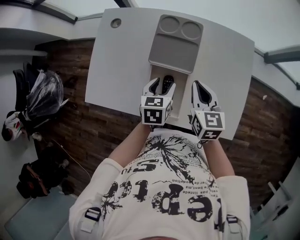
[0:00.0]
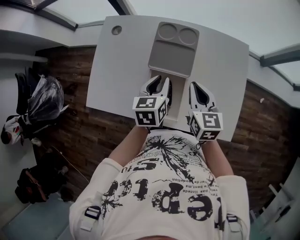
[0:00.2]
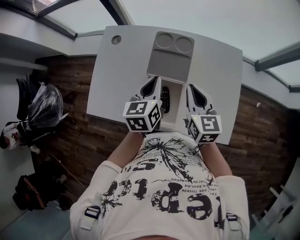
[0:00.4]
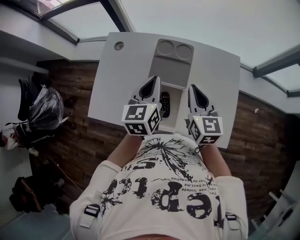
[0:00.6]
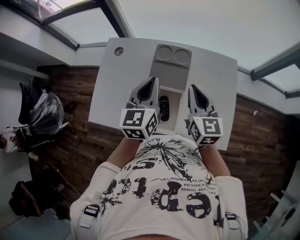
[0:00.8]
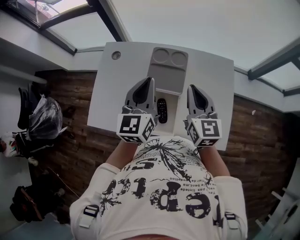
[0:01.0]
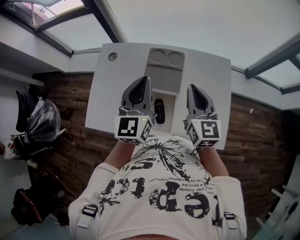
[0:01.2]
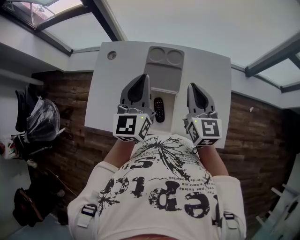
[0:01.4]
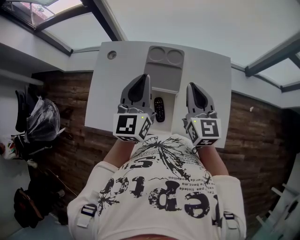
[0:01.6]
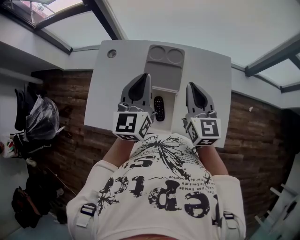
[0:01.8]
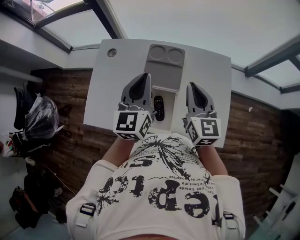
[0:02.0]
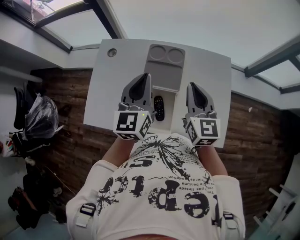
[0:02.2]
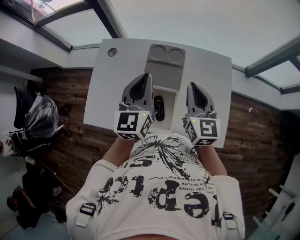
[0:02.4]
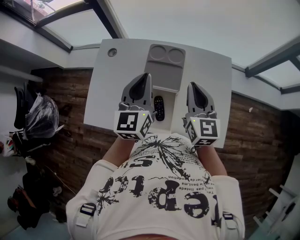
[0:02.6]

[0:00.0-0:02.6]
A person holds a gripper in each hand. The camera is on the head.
0:00.0 to 0:01.2: The left gripper heads upward, covering some 25 cm, points its fingers roughly 40 degrees further upward, and closes. Meanwhile the right gripper is displaced upward by about 15 cm, and changes its angle by roughly 20 degrees.
0:01.2 to 0:02.6: The grippers move only a little.

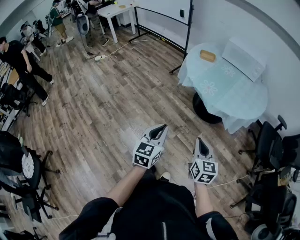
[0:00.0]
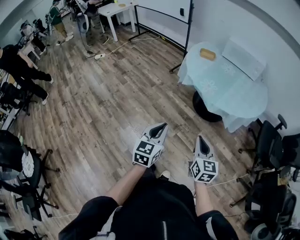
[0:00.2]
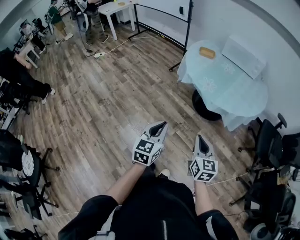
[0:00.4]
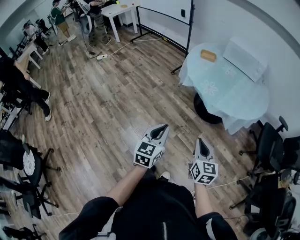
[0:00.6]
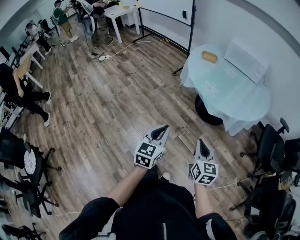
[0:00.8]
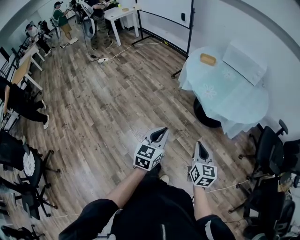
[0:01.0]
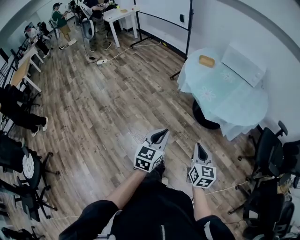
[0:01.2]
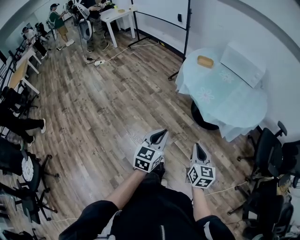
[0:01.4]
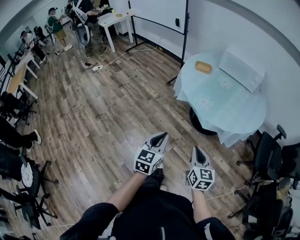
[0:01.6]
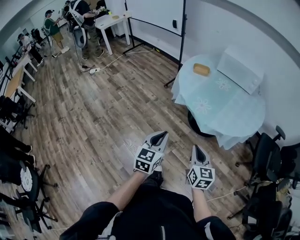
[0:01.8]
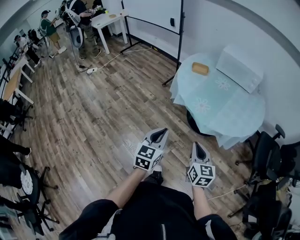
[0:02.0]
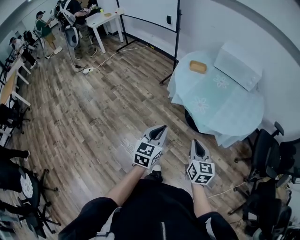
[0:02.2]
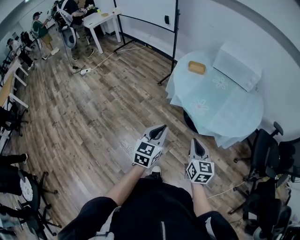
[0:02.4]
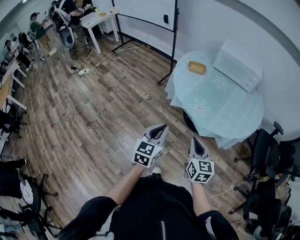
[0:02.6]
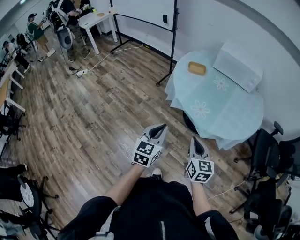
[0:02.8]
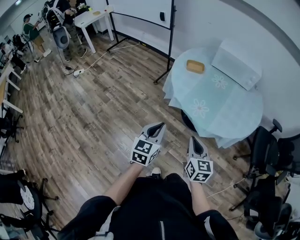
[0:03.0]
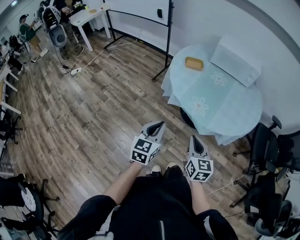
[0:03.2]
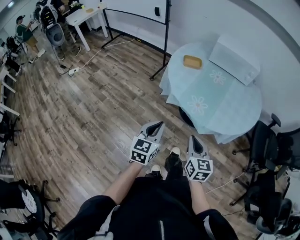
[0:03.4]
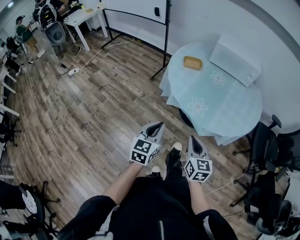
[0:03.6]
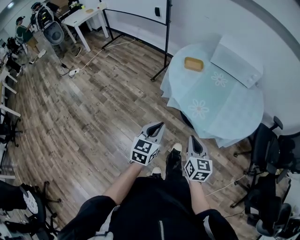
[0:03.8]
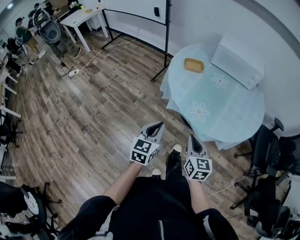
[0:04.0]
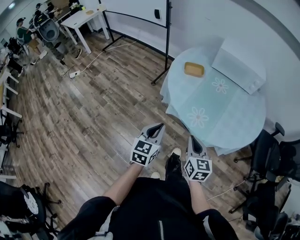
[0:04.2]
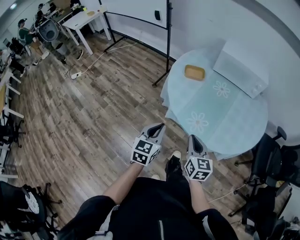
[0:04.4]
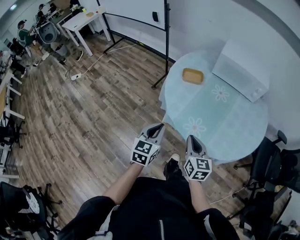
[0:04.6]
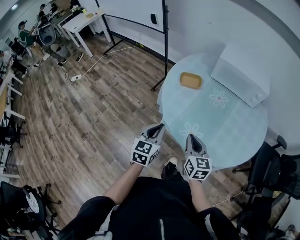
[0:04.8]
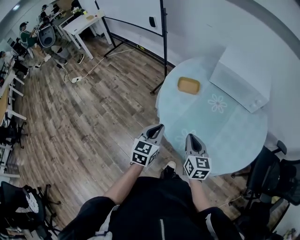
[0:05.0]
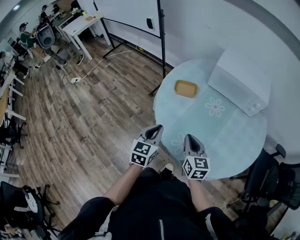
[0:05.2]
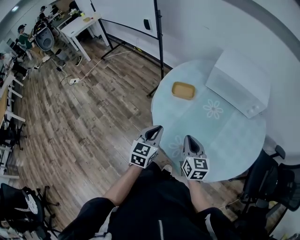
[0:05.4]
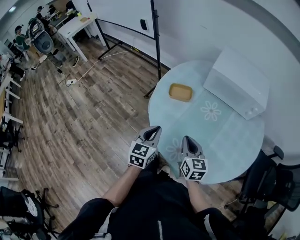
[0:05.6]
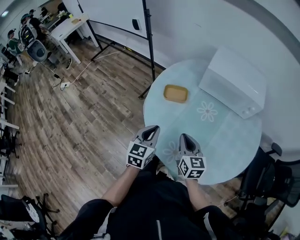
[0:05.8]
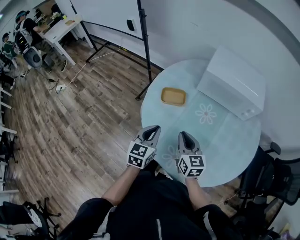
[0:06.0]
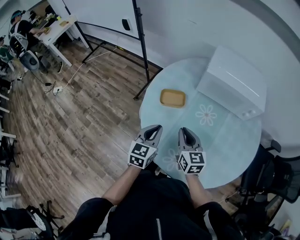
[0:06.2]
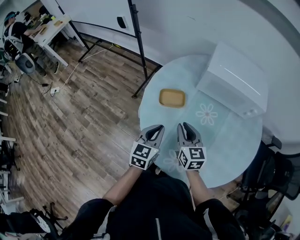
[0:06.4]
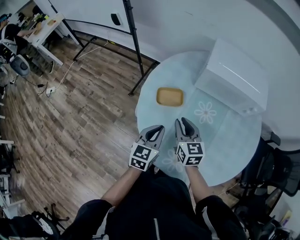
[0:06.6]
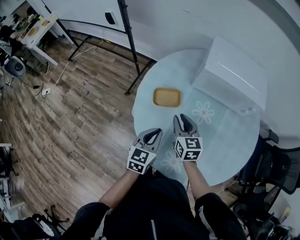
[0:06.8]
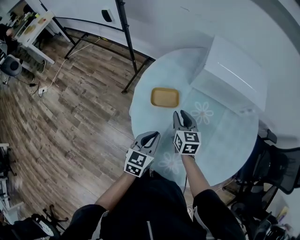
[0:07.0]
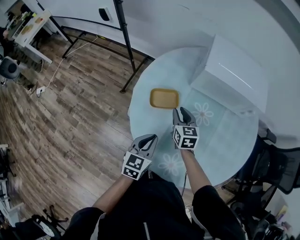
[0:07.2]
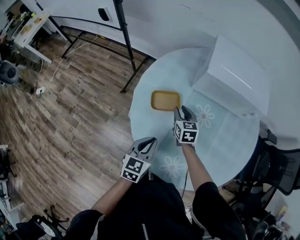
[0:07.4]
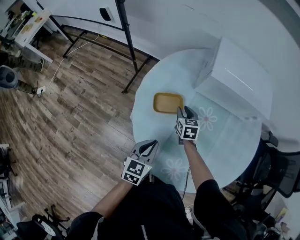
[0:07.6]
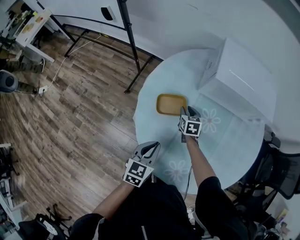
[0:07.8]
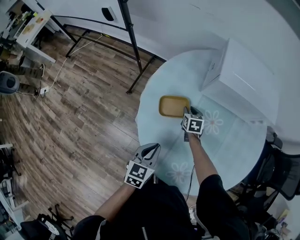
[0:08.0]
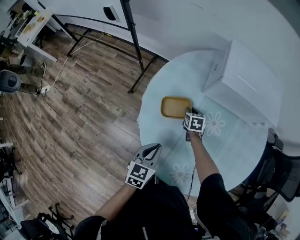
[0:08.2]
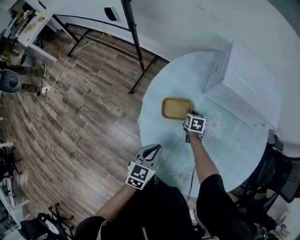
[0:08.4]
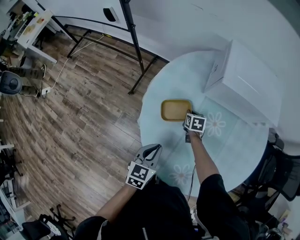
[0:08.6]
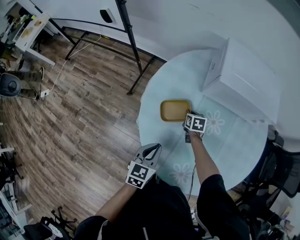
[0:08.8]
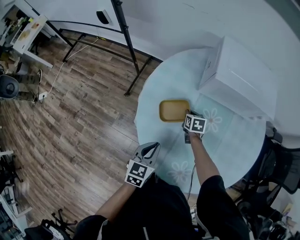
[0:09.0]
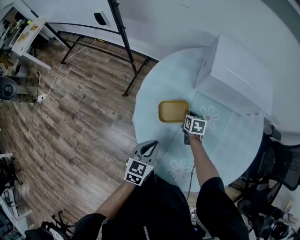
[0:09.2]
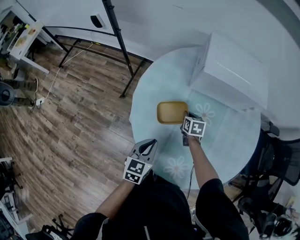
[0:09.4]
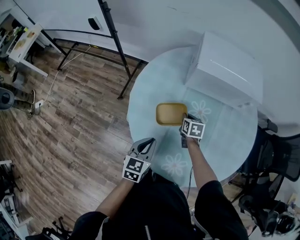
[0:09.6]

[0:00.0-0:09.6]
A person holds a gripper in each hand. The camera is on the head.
0:00.0 to 0:01.6: Both grippers travel together forward, approximately 10 cm.
0:01.6 to 0:03.2: Both grippers travel together forward, about 15 cm.
0:03.2 to 0:04.8: Both grippers travel together forward, roughly 25 cm.
0:04.8 to 0:06.4: The two grippers go about 25 cm forward.
0:06.4 to 0:08.0: The right gripper heads downward and forward, covering some 30 cm, and turns by some 30 degrees, while the left gripper moves downward, about 5 cm.
0:08.0 to 0:09.6: The right gripper shifts roughly 10 cm backward and to the right, and closes up.

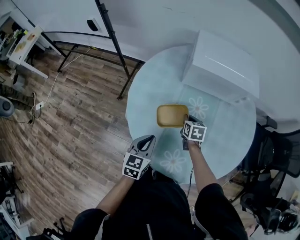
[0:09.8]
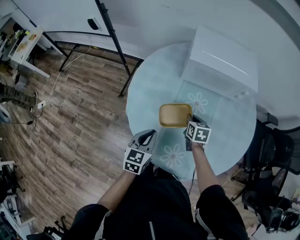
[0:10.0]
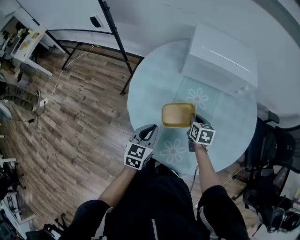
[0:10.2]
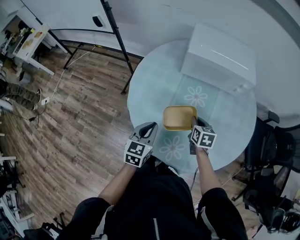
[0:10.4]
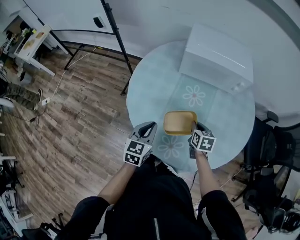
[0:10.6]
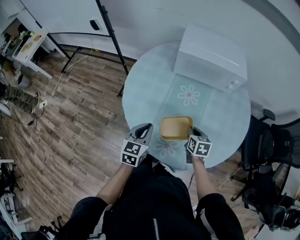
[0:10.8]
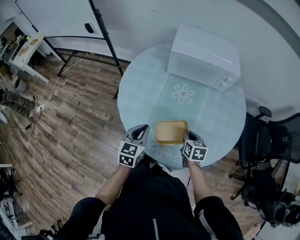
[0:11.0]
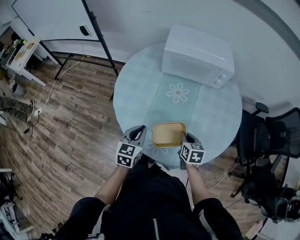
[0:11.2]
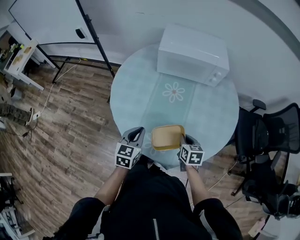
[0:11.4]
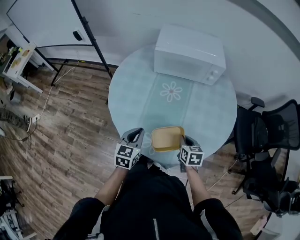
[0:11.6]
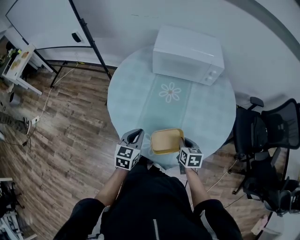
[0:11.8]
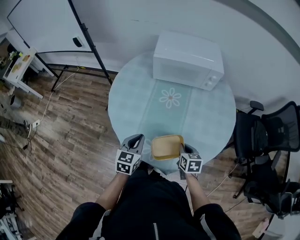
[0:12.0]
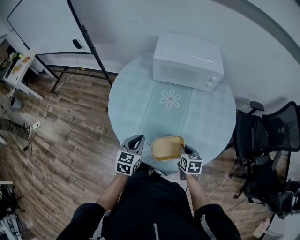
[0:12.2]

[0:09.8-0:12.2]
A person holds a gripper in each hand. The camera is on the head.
0:09.8 to 0:11.0: The left gripper moves backward and to the right, some 10 cm, while the right gripper is displaced backward and to the right by some 20 cm.
0:11.0 to 0:12.2: The right gripper moves backward, approximately 5 cm.

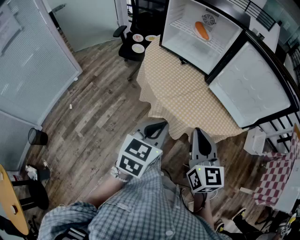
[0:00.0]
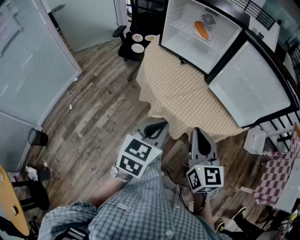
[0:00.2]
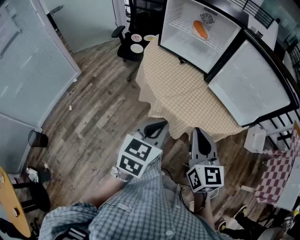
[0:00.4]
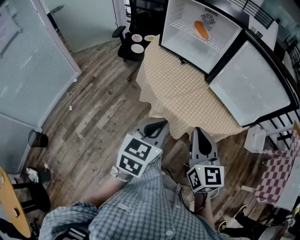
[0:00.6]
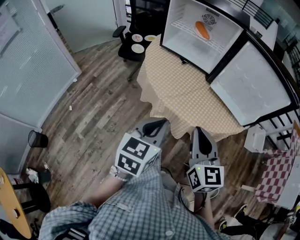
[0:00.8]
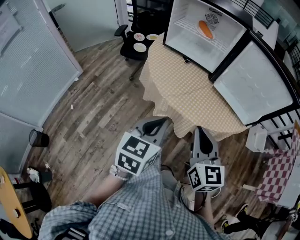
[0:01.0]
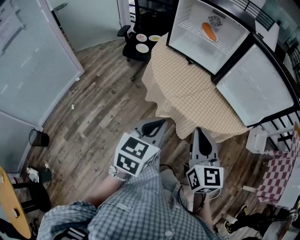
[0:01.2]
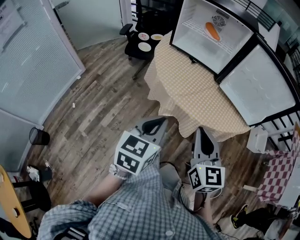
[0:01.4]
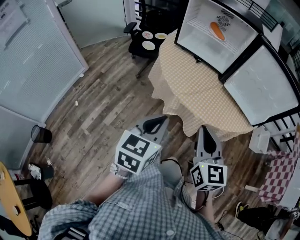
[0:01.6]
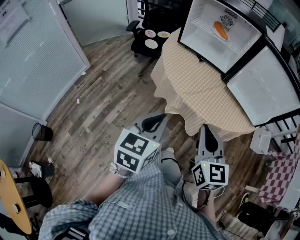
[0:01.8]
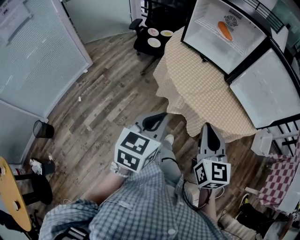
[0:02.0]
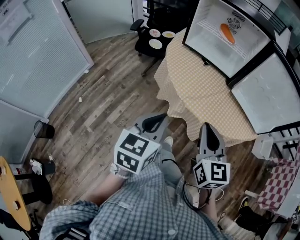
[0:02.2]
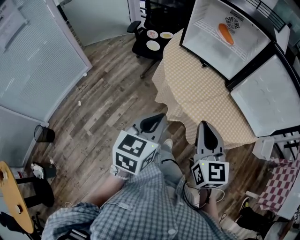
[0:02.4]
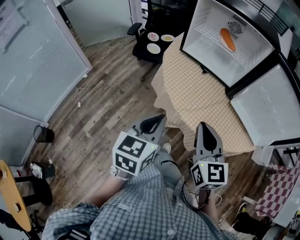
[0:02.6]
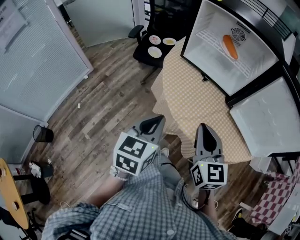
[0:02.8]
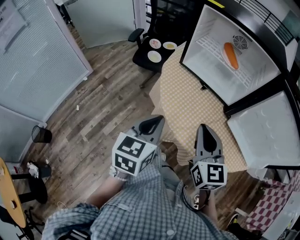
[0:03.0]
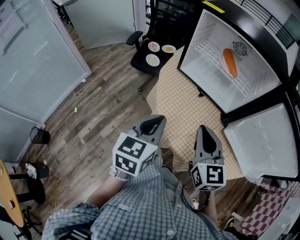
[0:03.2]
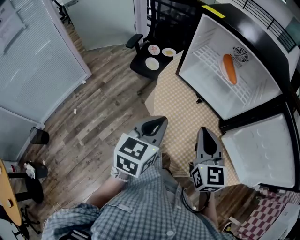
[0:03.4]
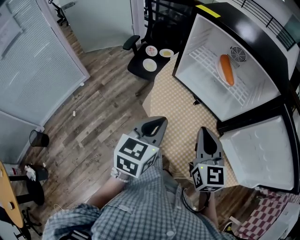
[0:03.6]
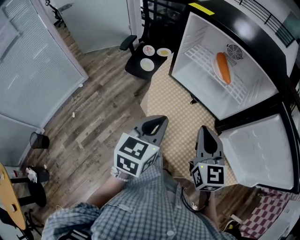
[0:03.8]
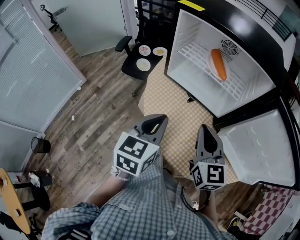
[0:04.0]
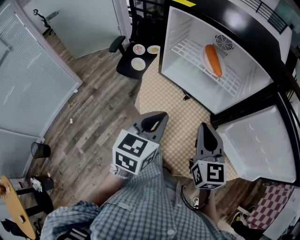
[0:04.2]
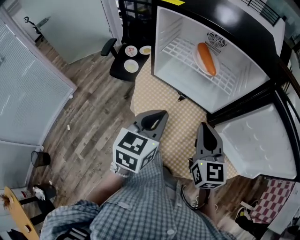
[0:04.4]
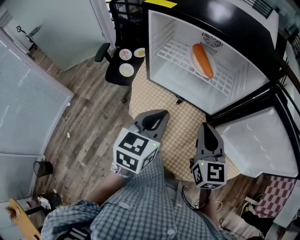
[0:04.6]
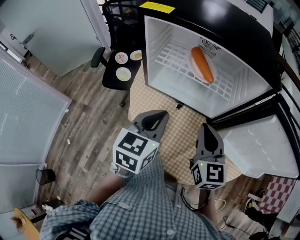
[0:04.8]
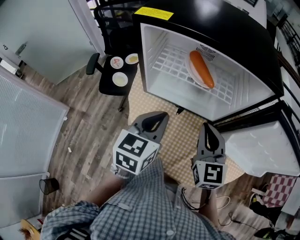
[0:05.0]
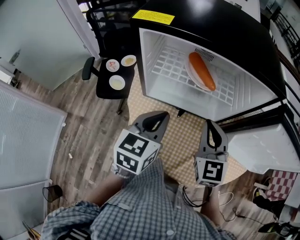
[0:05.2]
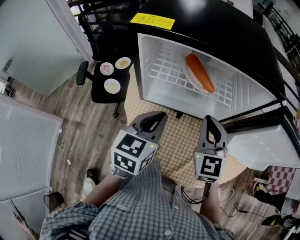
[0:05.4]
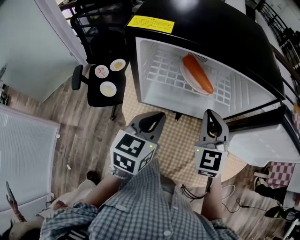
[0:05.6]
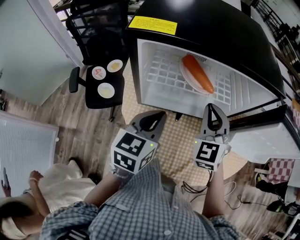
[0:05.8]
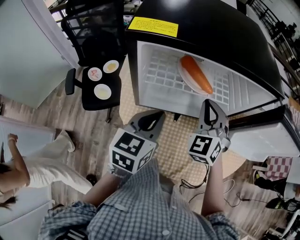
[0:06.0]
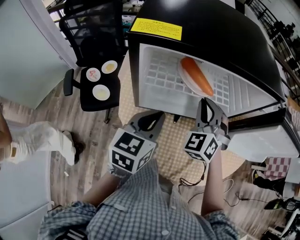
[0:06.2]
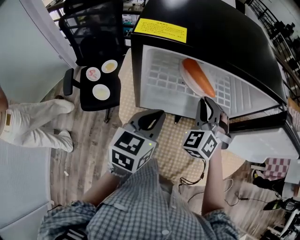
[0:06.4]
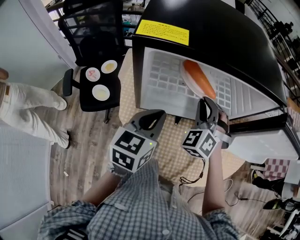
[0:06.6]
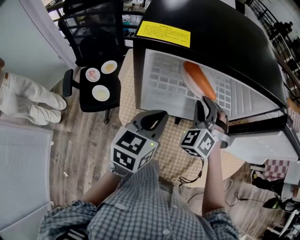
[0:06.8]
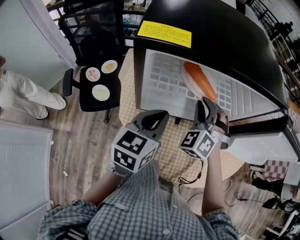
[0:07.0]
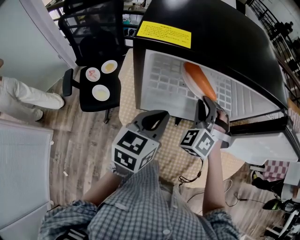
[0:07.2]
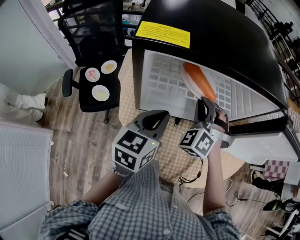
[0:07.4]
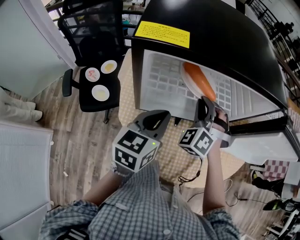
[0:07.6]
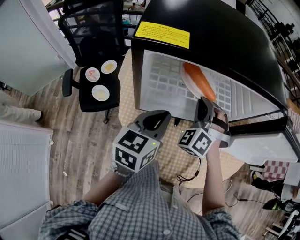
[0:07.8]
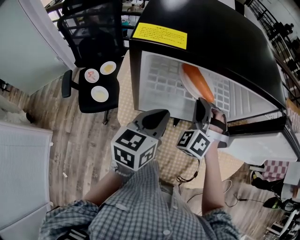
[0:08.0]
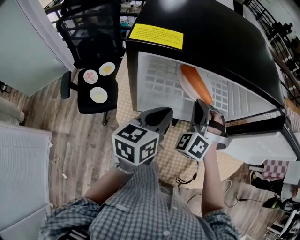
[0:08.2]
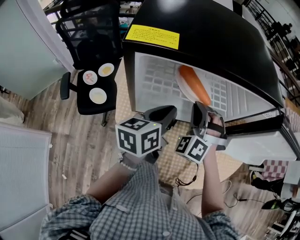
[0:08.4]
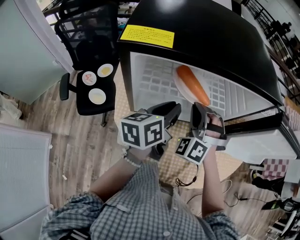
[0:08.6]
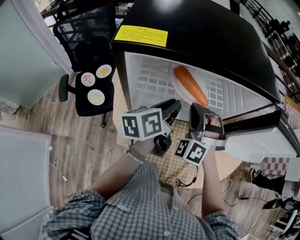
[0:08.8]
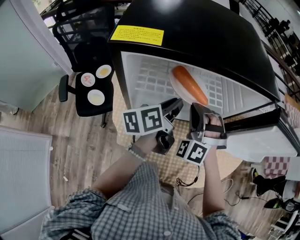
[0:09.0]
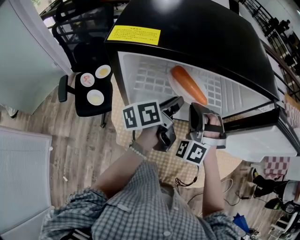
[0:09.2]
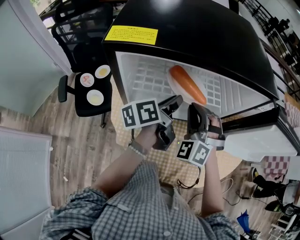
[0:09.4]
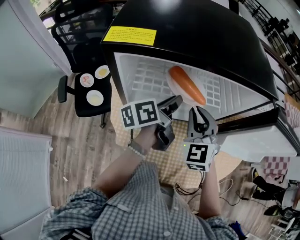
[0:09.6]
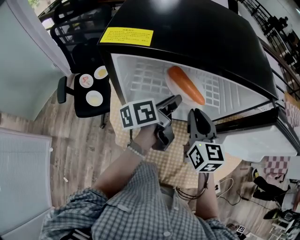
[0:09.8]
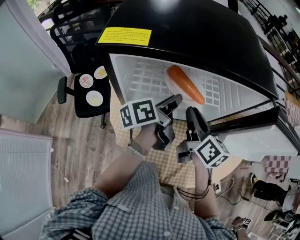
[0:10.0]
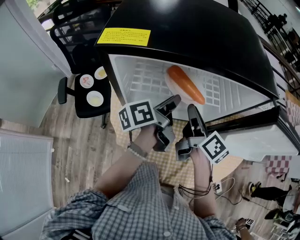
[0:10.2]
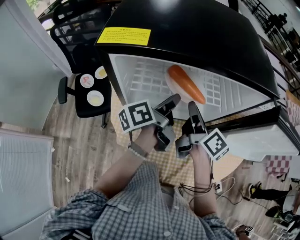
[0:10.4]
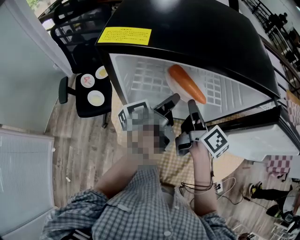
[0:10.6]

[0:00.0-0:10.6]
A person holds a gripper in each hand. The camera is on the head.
0:00.0 to 0:01.6: Both grippers move to the left, approximately 10 cm.
0:01.6 to 0:03.0: The grippers both shift forward by some 20 cm.
0:03.0 to 0:04.6: The grippers both shift forward and to the right by some 20 cm.
0:04.6 to 0:06.0: The left gripper changes place by some 15 cm, and changes its angle by approximately 20 degrees. The right gripper shifts by some 15 cm, and changes its angle by roughly 50 degrees.
0:06.0 to 0:07.6: The right gripper ends up approximately 5 cm from where it was, and turns by roughly 30 degrees.
0:07.6 to 0:09.0: The left gripper heads forward, covering about 10 cm, and rotates some 40 degrees.
0:09.0 to 0:10.6: The left gripper turns by about 20 degrees. Meanwhile the right gripper twists approximately 140 degrees clockwise, seen from behind.
